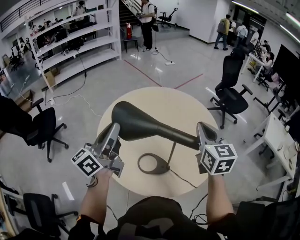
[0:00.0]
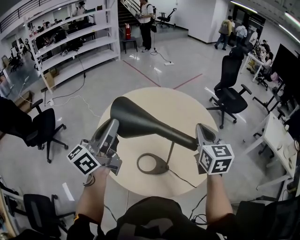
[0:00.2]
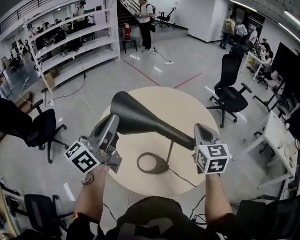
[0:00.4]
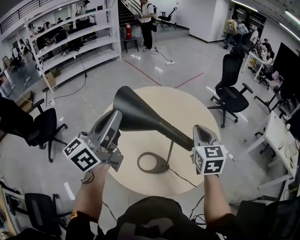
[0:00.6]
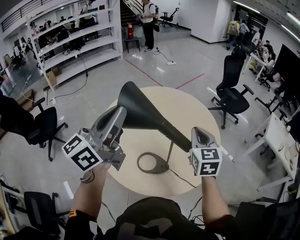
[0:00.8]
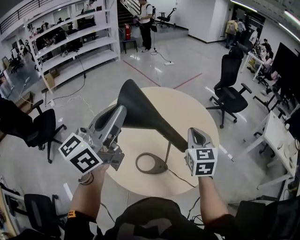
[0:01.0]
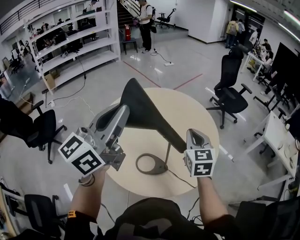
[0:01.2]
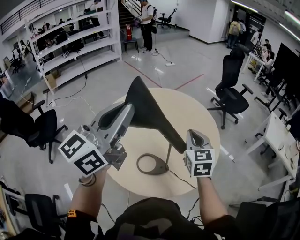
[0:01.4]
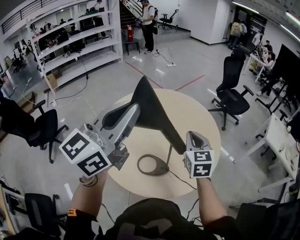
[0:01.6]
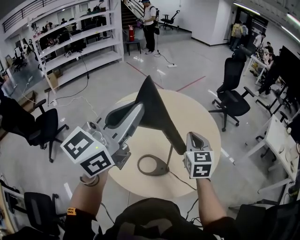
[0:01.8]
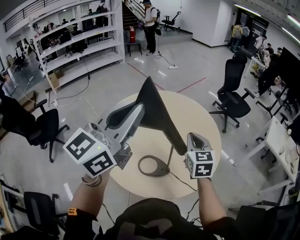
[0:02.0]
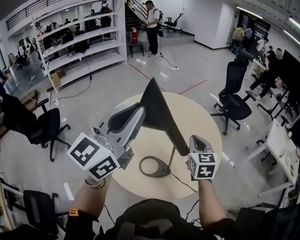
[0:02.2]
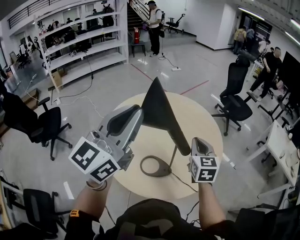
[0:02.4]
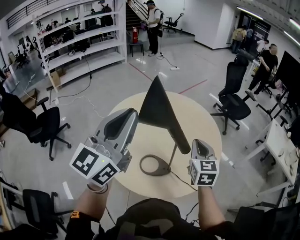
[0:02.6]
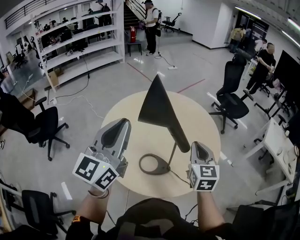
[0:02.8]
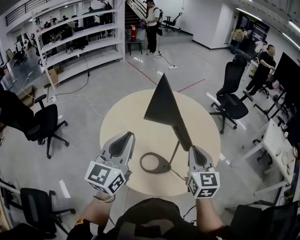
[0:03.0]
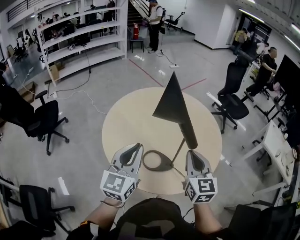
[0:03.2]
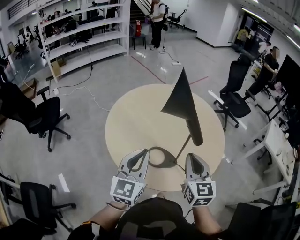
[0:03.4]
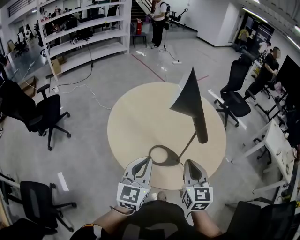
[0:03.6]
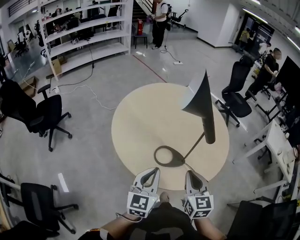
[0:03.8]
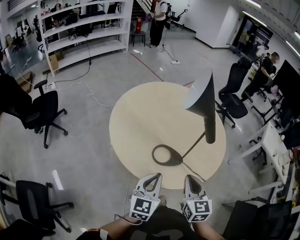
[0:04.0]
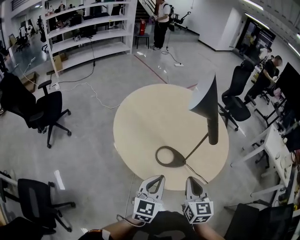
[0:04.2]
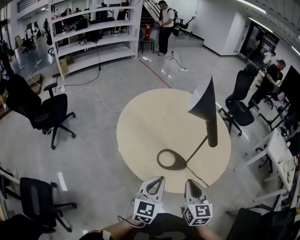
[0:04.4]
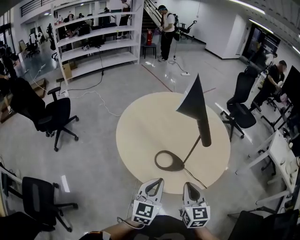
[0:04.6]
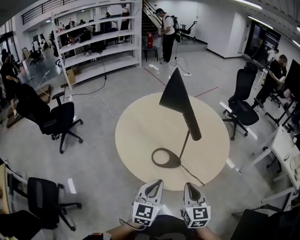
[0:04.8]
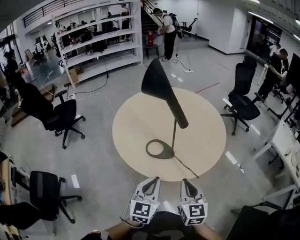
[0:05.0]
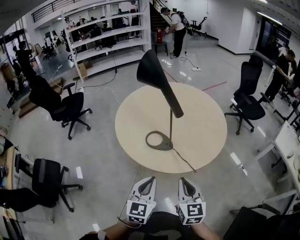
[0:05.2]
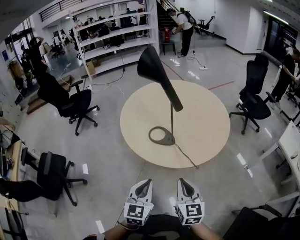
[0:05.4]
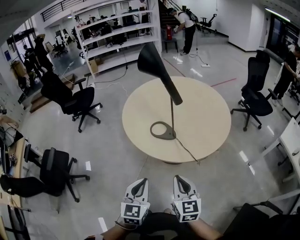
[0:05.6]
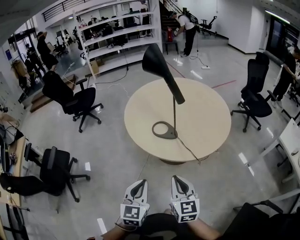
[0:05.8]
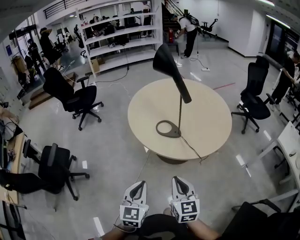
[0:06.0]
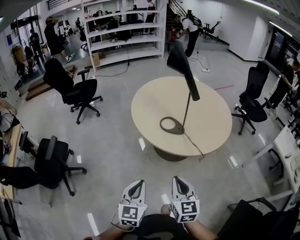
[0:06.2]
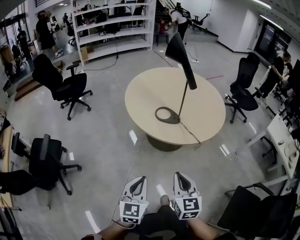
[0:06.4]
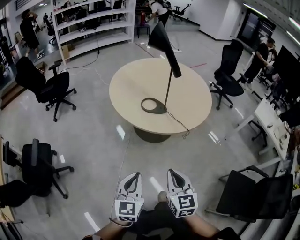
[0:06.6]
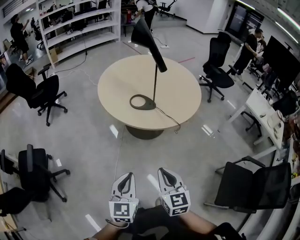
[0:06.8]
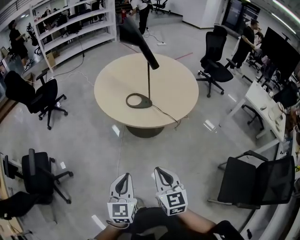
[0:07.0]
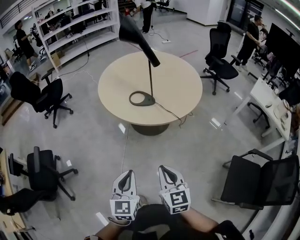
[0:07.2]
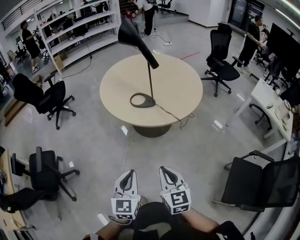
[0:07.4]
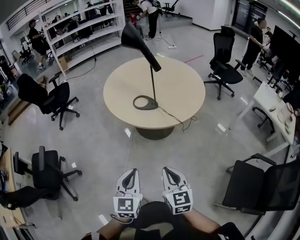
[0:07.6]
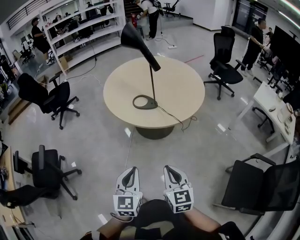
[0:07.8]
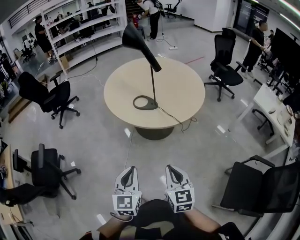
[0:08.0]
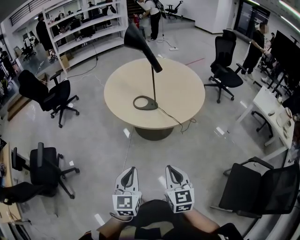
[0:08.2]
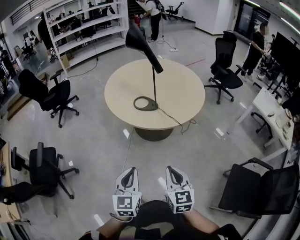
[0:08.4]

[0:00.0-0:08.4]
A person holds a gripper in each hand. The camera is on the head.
0:00.0 to 0:01.4: The right gripper goes some 5 cm downward, while the left gripper goes some 15 cm upward and to the right, and rotates roughly 30 degrees.
0:01.4 to 0:02.8: The right gripper goes about 5 cm backward. Meanwhile the left gripper shifts about 5 cm downward.
0:02.8 to 0:04.2: The left gripper shifts roughly 30 cm downward and backward, and changes its angle by about 30 degrees. Meanwhile the right gripper moves backward, to the left and downward, about 25 cm.
0:04.2 to 0:05.6: Both grippers travel together backward and to the right, about 35 cm. The left gripper turns by about 30 degrees. Meanwhile the right gripper turns by some 20 degrees.
0:05.6 to 0:07.0: Both grippers move backward and to the left, approximately 20 cm.
0:07.0 to 0:08.4: Both grippers move to the right, approximately 5 cm.

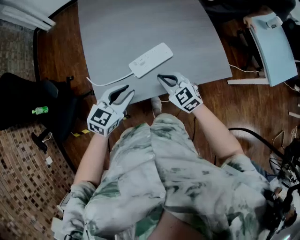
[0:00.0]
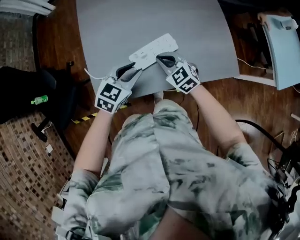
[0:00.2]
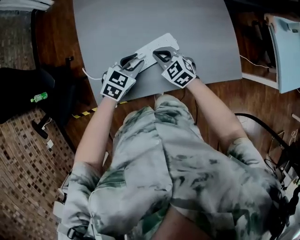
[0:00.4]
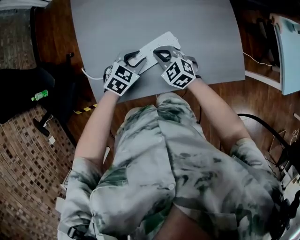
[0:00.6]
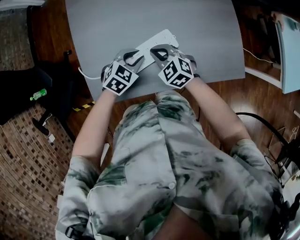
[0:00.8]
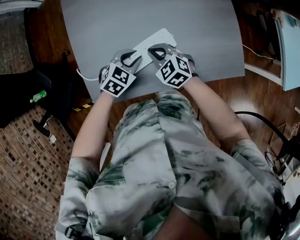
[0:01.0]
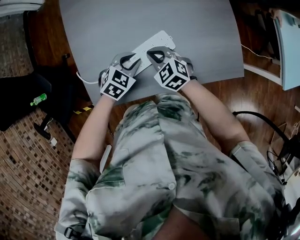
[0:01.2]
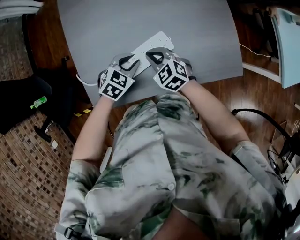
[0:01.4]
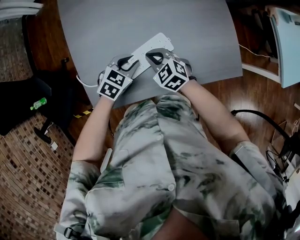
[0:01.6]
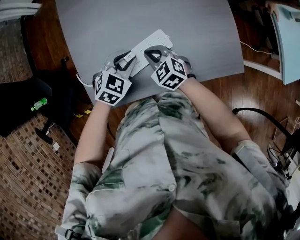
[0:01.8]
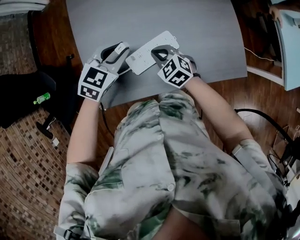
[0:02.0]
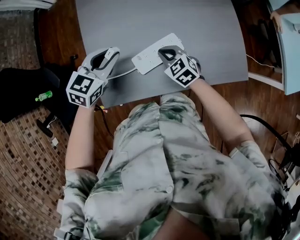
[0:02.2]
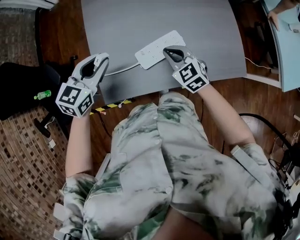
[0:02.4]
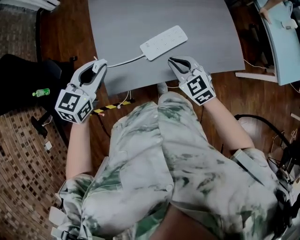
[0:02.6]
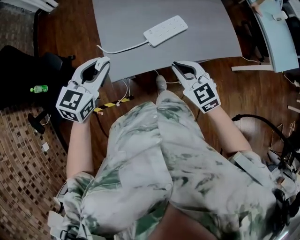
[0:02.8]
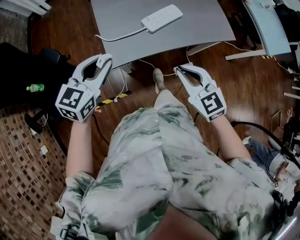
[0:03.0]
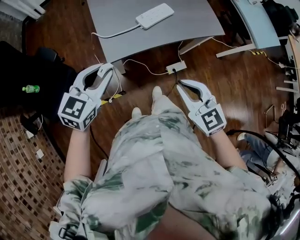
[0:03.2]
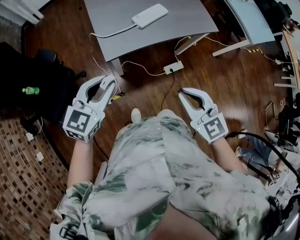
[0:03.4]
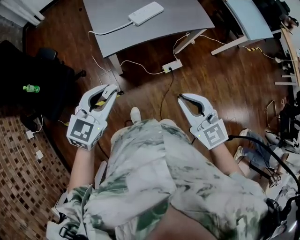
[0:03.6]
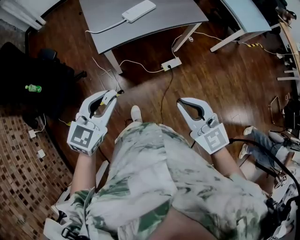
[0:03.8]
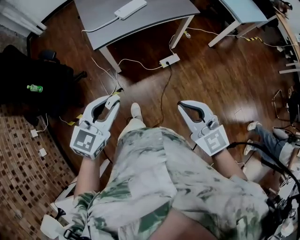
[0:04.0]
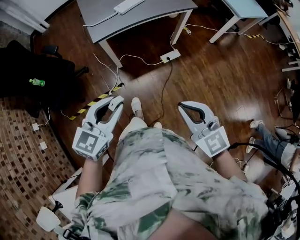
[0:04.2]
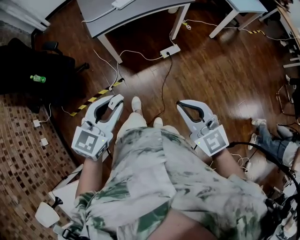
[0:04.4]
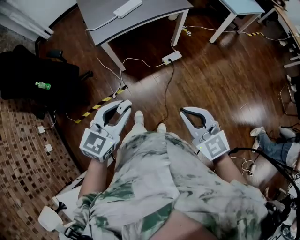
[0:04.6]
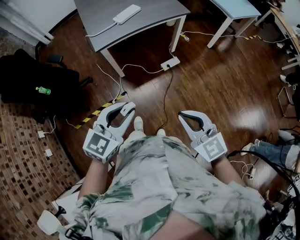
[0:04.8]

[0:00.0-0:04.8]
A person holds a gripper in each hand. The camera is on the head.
0:00.0 to 0:01.6: The two grippers go roughly 20 cm forward and downward. The left gripper swivels about 20 degrees.
0:01.6 to 0:03.2: The right gripper shifts about 40 cm backward and upward, and changes its angle by roughly 30 degrees. Meanwhile the left gripper shifts approximately 40 cm backward, upward and to the left, and rotates some 30 degrees.
0:03.2 to 0:04.8: The right gripper is displaced backward by about 35 cm; the left gripper travels backward and to the right by about 40 cm.

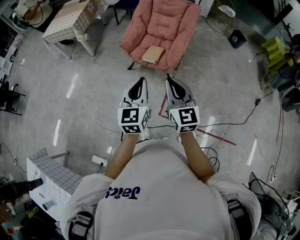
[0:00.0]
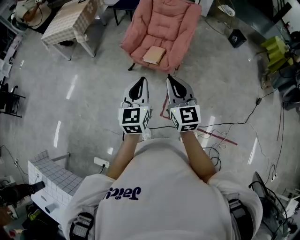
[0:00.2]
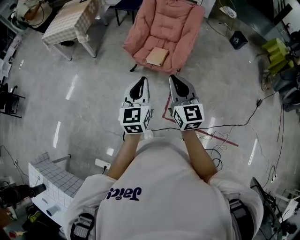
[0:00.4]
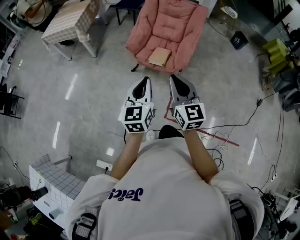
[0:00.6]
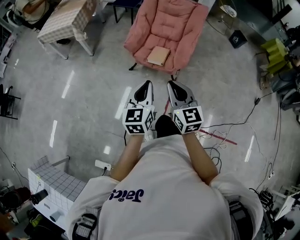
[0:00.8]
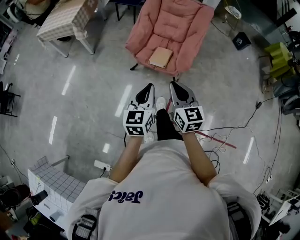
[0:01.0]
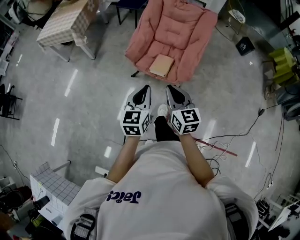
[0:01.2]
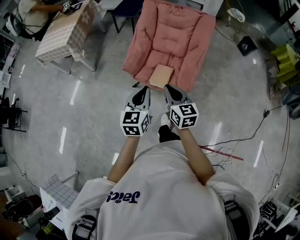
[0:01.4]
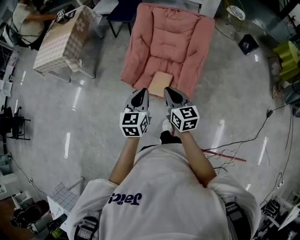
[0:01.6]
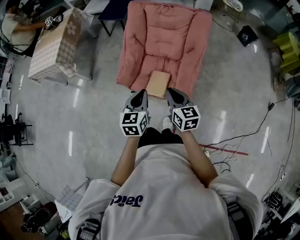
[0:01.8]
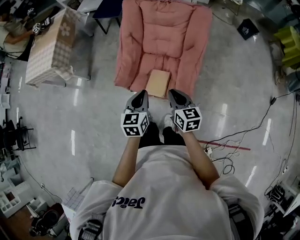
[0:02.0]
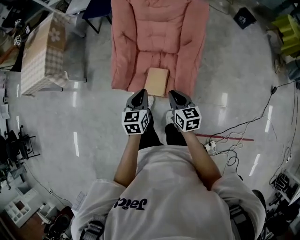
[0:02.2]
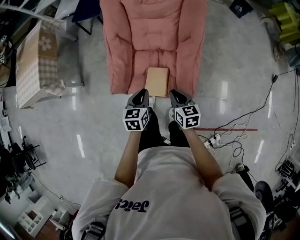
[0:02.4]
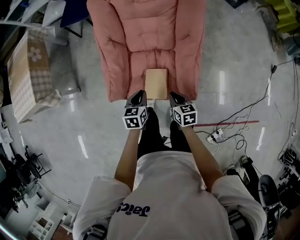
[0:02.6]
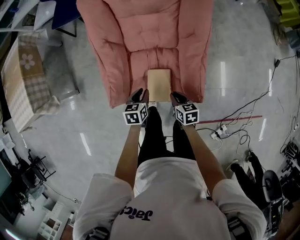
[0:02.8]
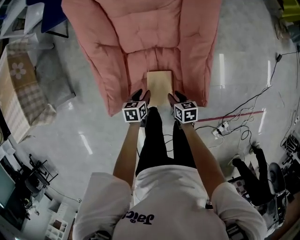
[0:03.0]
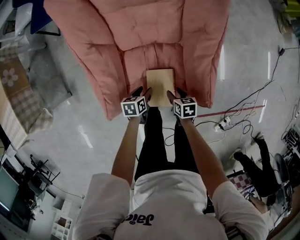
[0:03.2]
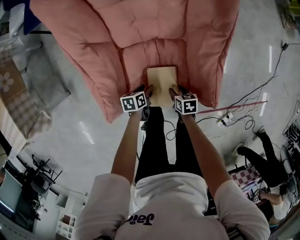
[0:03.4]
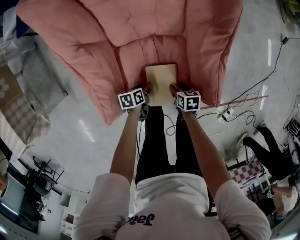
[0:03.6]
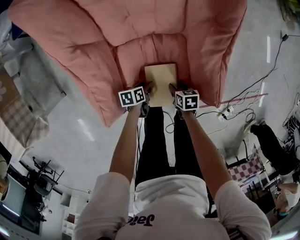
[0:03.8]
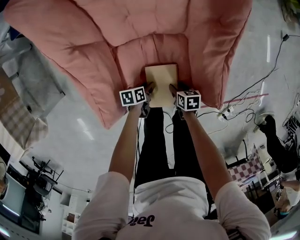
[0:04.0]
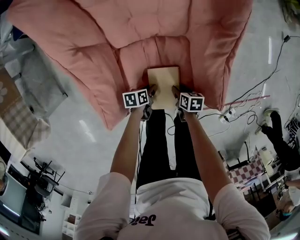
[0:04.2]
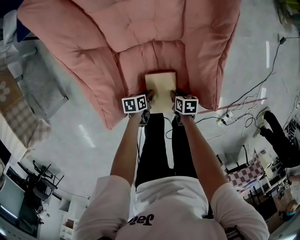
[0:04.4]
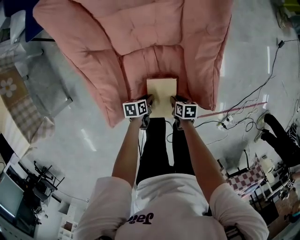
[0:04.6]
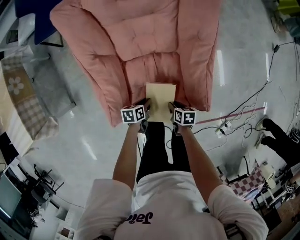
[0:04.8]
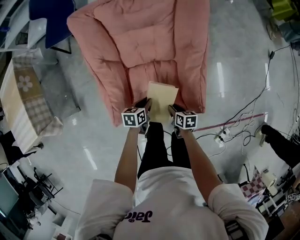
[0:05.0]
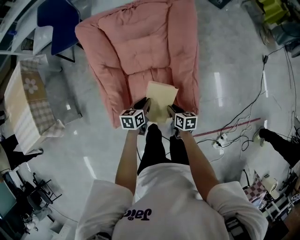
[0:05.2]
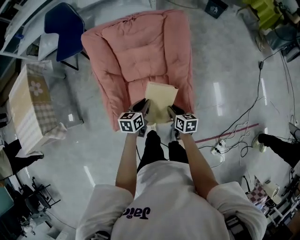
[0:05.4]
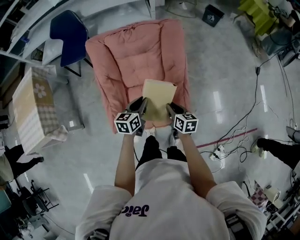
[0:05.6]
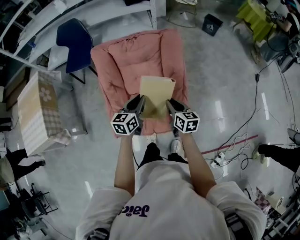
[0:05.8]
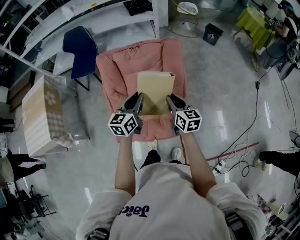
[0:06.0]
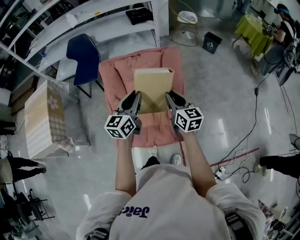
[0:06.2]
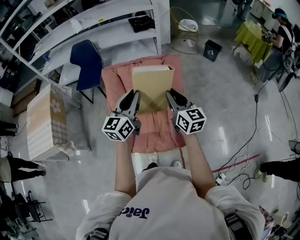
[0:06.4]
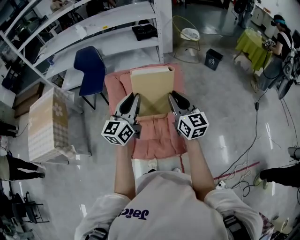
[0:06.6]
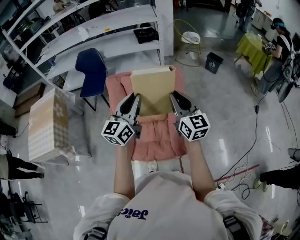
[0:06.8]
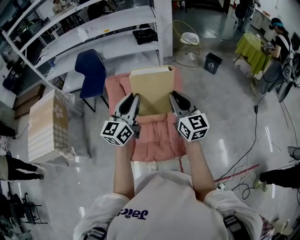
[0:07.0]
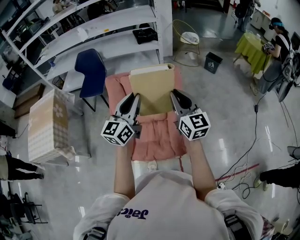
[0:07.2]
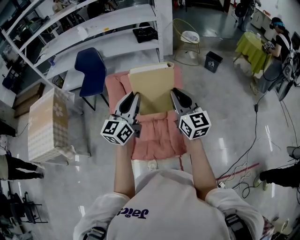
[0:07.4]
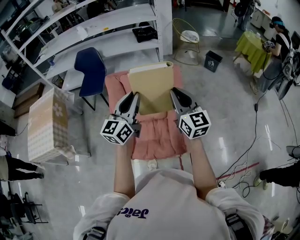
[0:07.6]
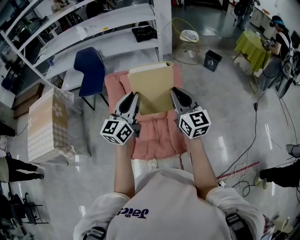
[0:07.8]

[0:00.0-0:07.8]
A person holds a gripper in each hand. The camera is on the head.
0:00.0 to 0:01.6: Both grippers travel together forward, some 35 cm. The right gripper changes its angle by some 20 degrees.
0:01.6 to 0:03.2: The two grippers go some 50 cm downward. The right gripper angles its fingers downward, by approximately 40 degrees, and opens, while the left gripper tips its fingers downward by some 40 degrees, and opens up.
0:03.2 to 0:04.6: The left gripper closes its fingers.
0:04.6 to 0:06.2: The grippers both shift upward by about 60 cm. The right gripper tilts its fingers about 60 degrees upward. Meanwhile the left gripper angles its fingers upward, by about 50 degrees.
0:06.2 to 0:07.8: Both grippers travel together upward, roughly 15 cm. The right gripper changes its angle by some 20 degrees.

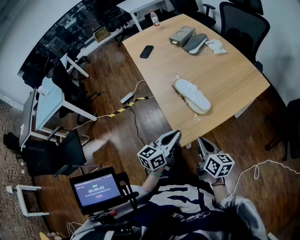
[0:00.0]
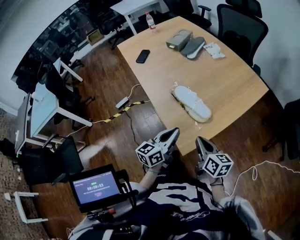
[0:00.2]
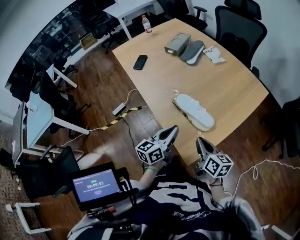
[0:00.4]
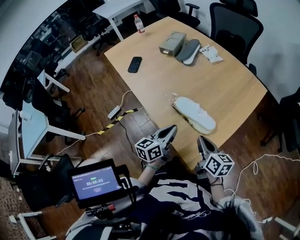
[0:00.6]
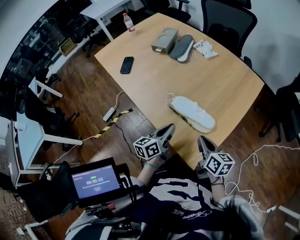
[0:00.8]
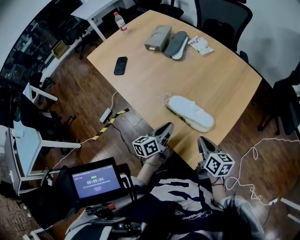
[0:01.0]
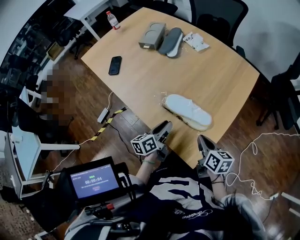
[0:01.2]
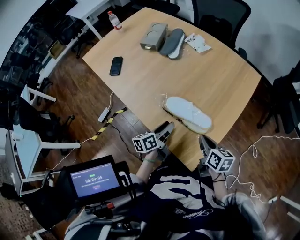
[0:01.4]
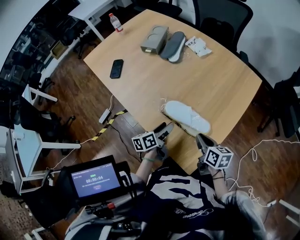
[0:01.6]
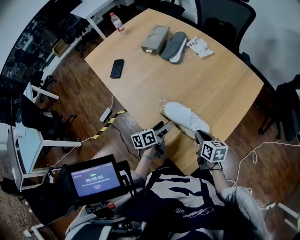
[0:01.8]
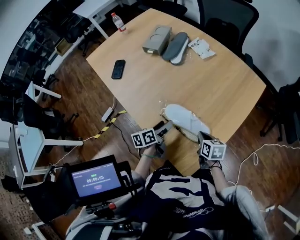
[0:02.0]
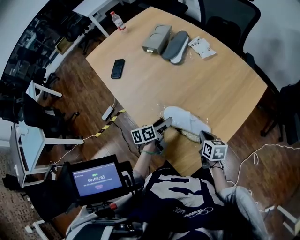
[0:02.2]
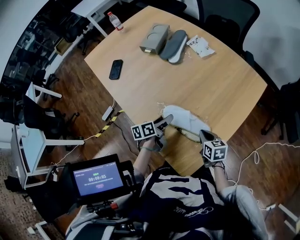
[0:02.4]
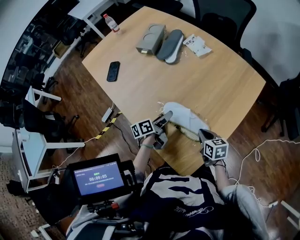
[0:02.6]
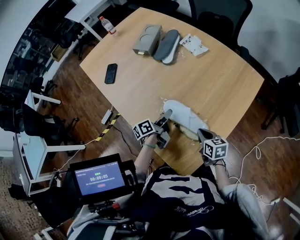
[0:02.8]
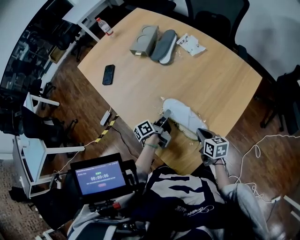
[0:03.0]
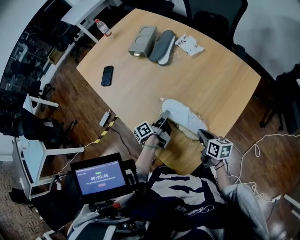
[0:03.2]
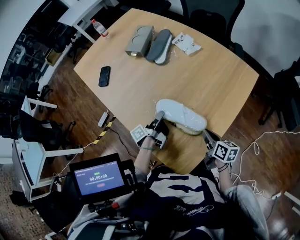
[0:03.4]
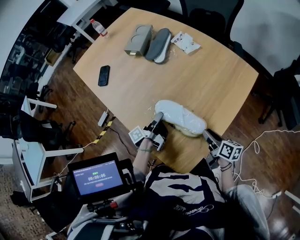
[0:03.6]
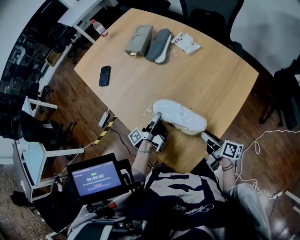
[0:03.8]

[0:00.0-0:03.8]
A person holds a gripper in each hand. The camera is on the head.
0:00.0 to 0:01.2: The left gripper moves forward, to the left and downward, about 25 cm, and rotates some 30 degrees. Meanwhile the right gripper is displaced forward and to the left by roughly 15 cm, and changes its angle by about 20 degrees.
0:01.2 to 0:02.6: The left gripper is displaced forward by about 10 cm, and opens its fingers, while the right gripper heads forward and downward, covering roughly 10 cm, and rotates about 20 degrees.
0:02.6 to 0:03.8: The left gripper changes its angle by approximately 40 degrees, and closes up. Meanwhile the right gripper ends up approximately 5 cm from where it was, swivels some 50 degrees, and opens.
